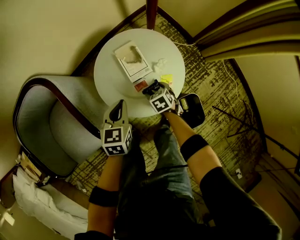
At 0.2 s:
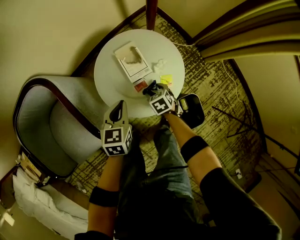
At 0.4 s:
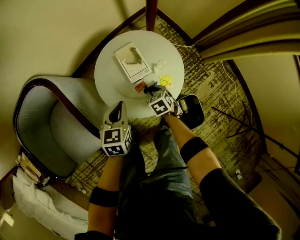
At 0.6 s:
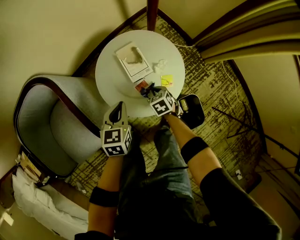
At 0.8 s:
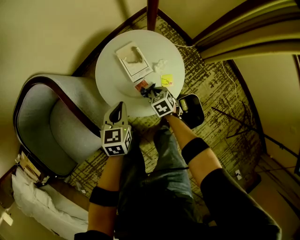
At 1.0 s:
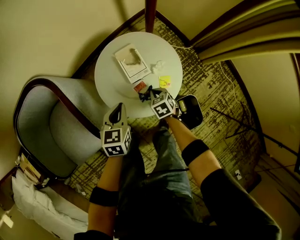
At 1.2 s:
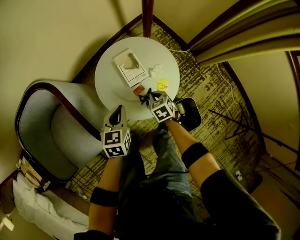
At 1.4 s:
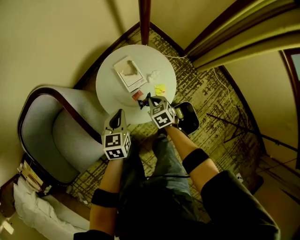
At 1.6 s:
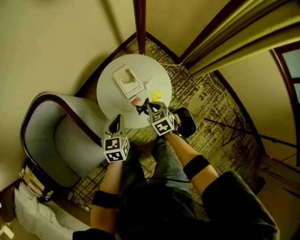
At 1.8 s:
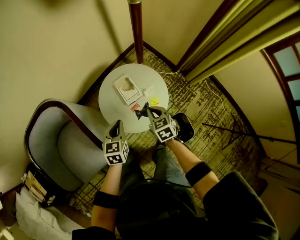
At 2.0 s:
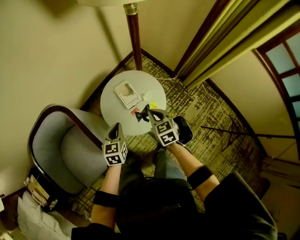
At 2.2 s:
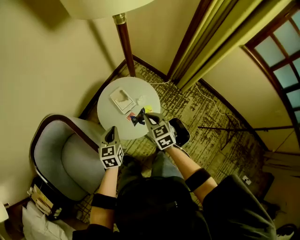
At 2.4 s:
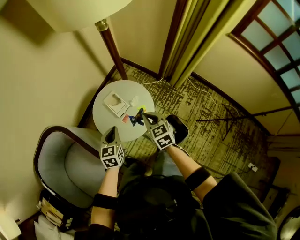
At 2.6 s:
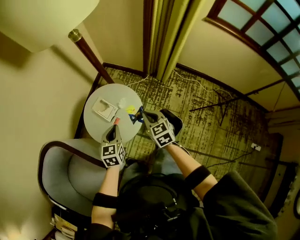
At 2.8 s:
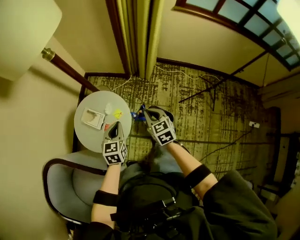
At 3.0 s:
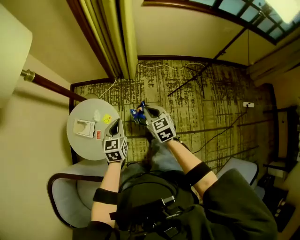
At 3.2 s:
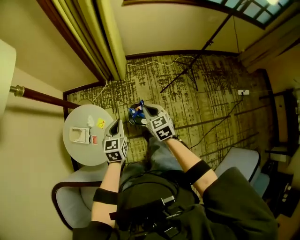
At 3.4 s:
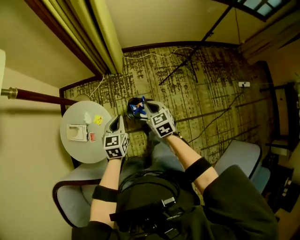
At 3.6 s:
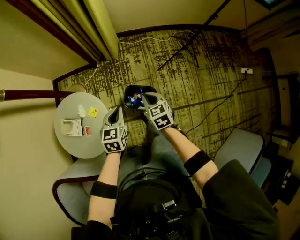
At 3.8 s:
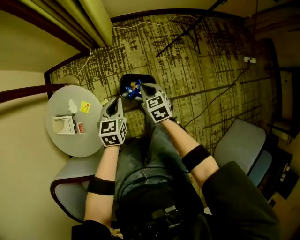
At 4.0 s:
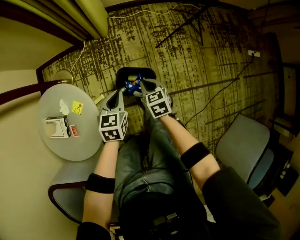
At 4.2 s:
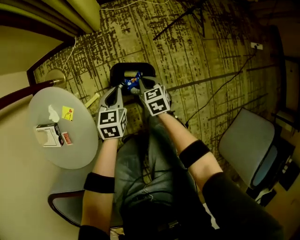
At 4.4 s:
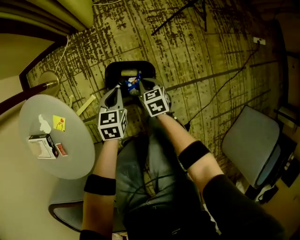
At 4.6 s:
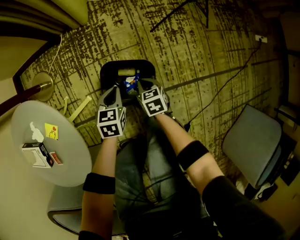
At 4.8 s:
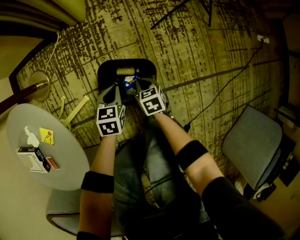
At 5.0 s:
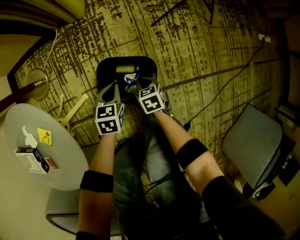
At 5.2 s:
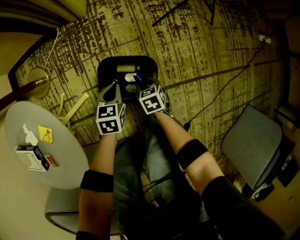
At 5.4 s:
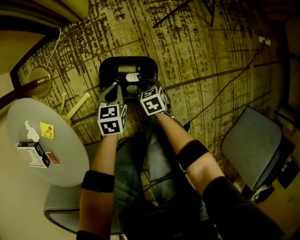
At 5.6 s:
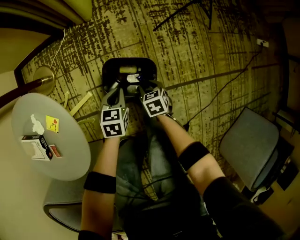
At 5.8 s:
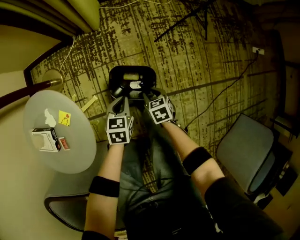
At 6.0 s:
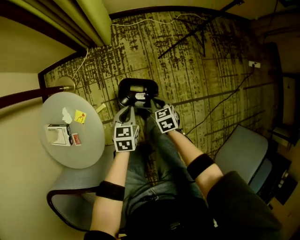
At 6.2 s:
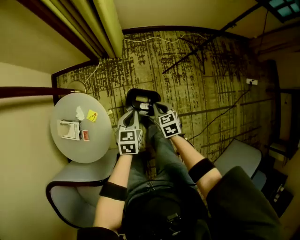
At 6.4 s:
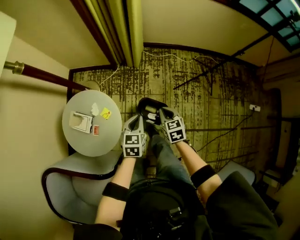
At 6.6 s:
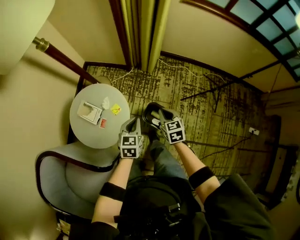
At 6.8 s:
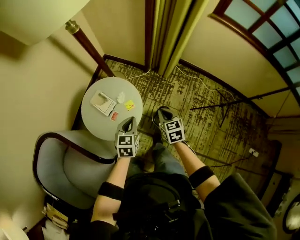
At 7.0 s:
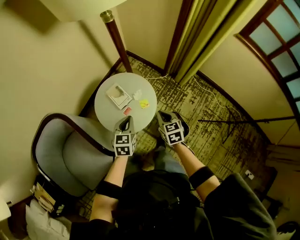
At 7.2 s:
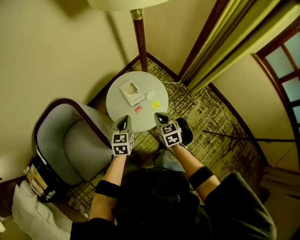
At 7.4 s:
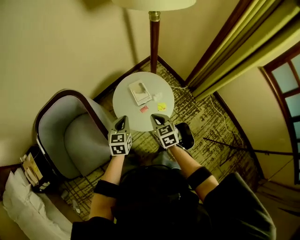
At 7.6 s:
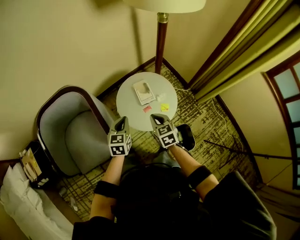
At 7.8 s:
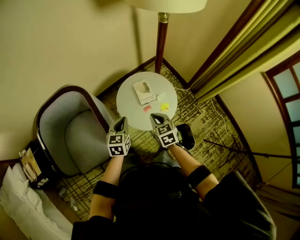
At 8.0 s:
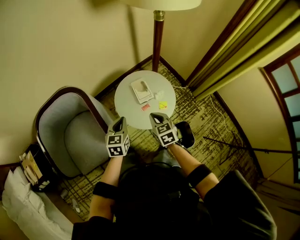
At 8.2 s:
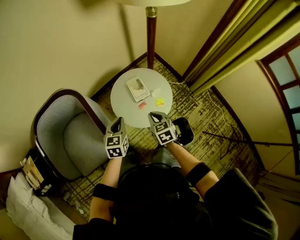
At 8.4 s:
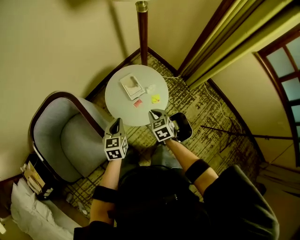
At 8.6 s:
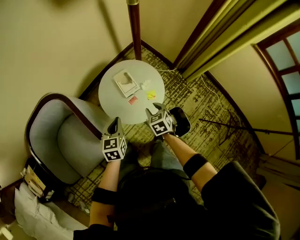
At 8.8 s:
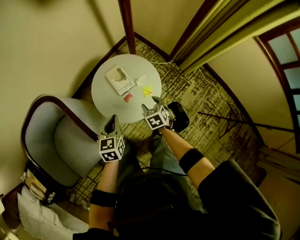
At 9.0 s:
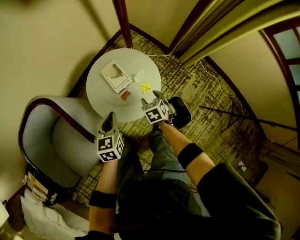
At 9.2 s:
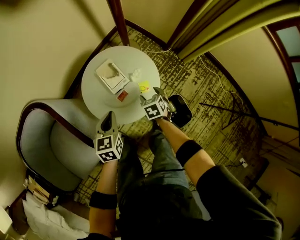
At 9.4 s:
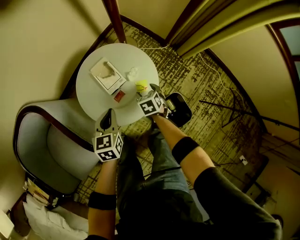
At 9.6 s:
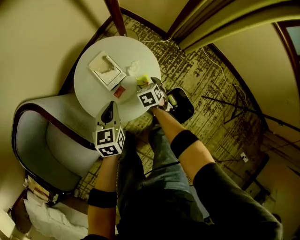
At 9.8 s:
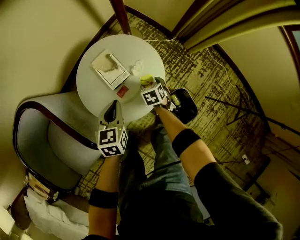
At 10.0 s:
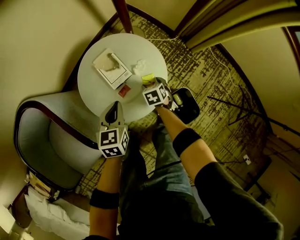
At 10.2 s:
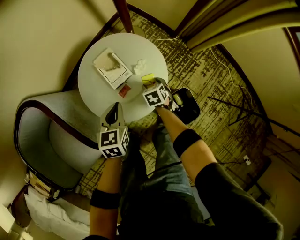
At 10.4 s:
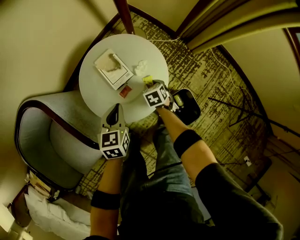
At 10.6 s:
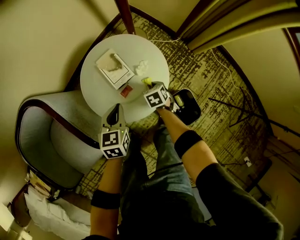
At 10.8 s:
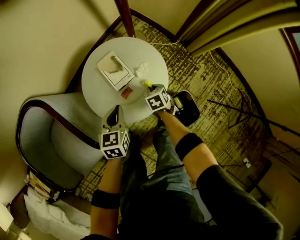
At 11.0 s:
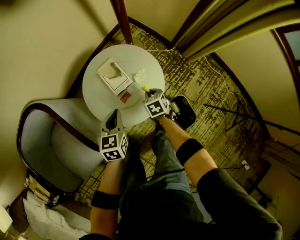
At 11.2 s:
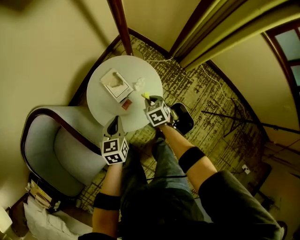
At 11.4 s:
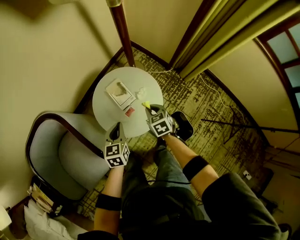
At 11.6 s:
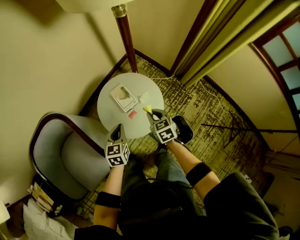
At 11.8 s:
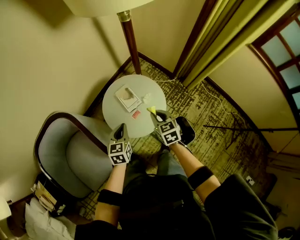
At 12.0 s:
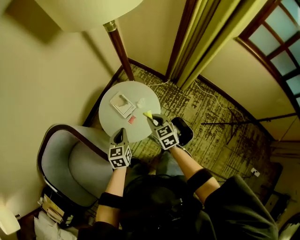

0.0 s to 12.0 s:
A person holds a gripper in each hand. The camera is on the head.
0.0 to 1.6 s: The right gripper shifts approximately 15 cm upward, and closes its fingers; the left gripper moves upward, about 5 cm.
1.6 to 3.0 s: The right gripper shifts by about 35 cm, and changes its angle by about 50 degrees. Meanwhile the left gripper ends up roughly 30 cm from where it was, and rotates roughly 50 degrees.
3.0 to 4.4 s: Both grippers move downward, approximately 50 cm. The left gripper turns by approximately 30 degrees, while the right gripper changes its angle by about 30 degrees.
4.4 to 6.0 s: Both grippers move upward, some 15 cm. The right gripper opens, then closes again.
6.0 to 7.6 s: Both grippers are carried about 40 cm. The right gripper rotates some 70 degrees, while the left gripper turns by roughly 70 degrees.
7.6 to 9.0 s: The left gripper goes roughly 10 cm downward and to the right; the right gripper heads downward and to the right, covering approximately 25 cm, rotates about 30 degrees, and opens.
9.0 to 10.4 s: The left gripper is displaced downward by about 10 cm, while the right gripper shifts roughly 15 cm downward.
10.4 to 12.0 s: The left gripper heads upward, covering about 15 cm, while the right gripper goes about 35 cm upward, and tilts its fingers approximately 30 degrees upward.

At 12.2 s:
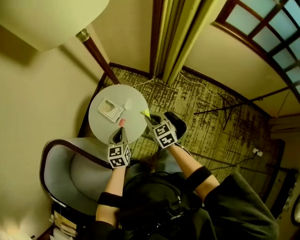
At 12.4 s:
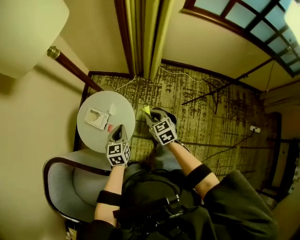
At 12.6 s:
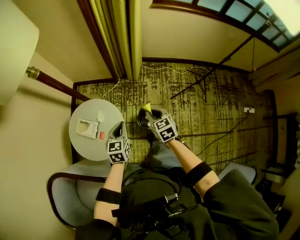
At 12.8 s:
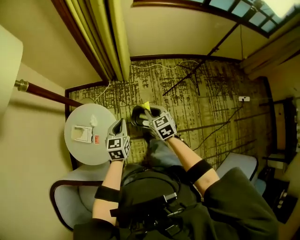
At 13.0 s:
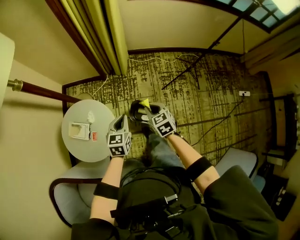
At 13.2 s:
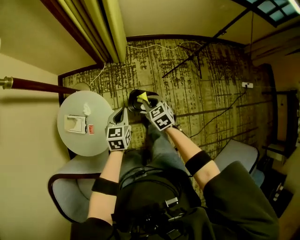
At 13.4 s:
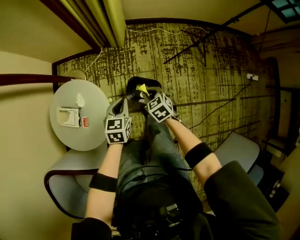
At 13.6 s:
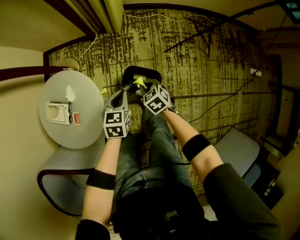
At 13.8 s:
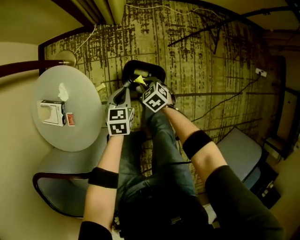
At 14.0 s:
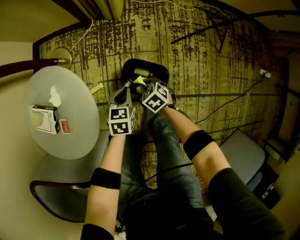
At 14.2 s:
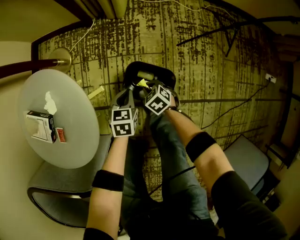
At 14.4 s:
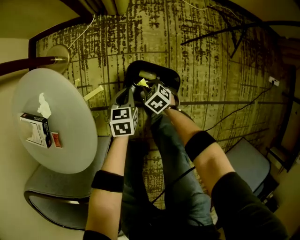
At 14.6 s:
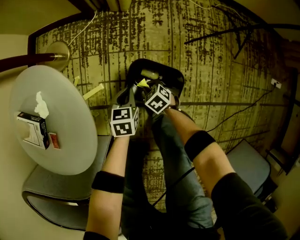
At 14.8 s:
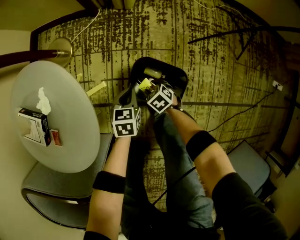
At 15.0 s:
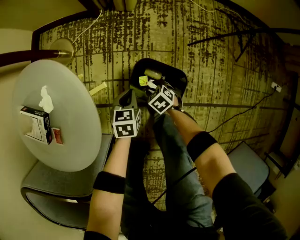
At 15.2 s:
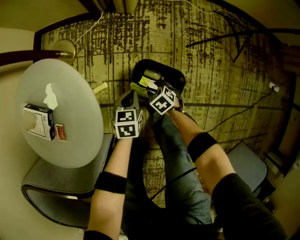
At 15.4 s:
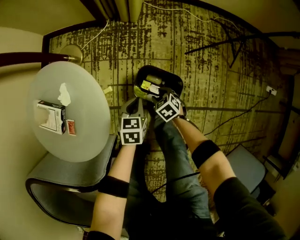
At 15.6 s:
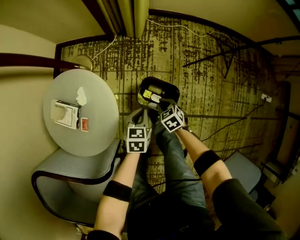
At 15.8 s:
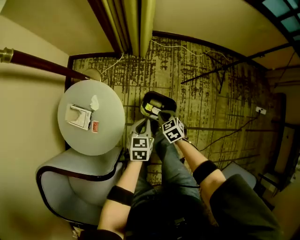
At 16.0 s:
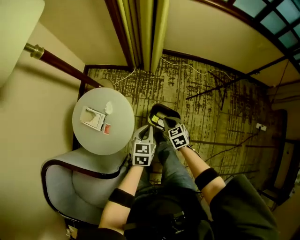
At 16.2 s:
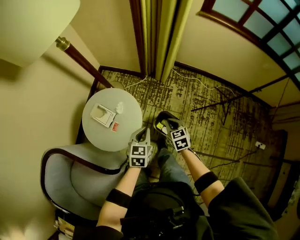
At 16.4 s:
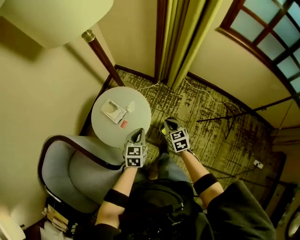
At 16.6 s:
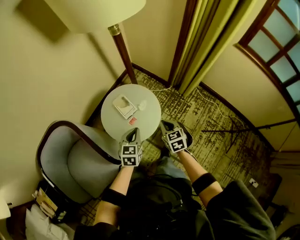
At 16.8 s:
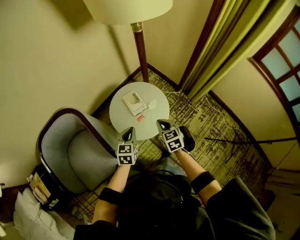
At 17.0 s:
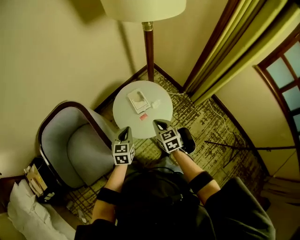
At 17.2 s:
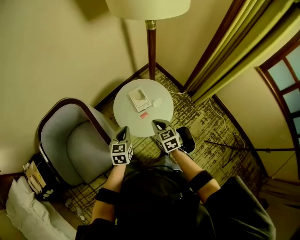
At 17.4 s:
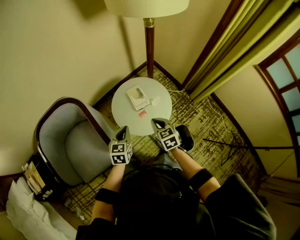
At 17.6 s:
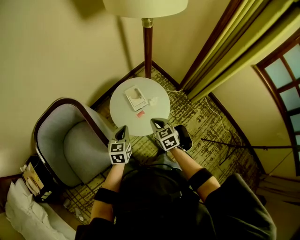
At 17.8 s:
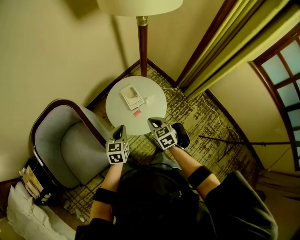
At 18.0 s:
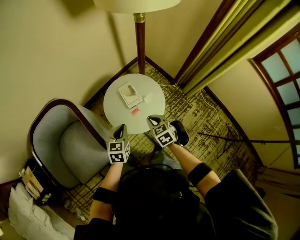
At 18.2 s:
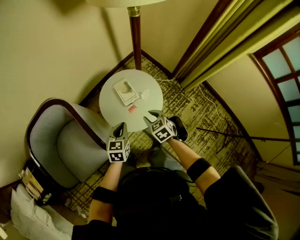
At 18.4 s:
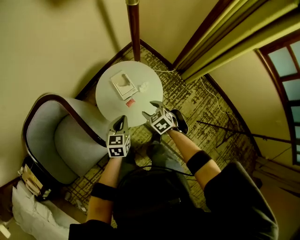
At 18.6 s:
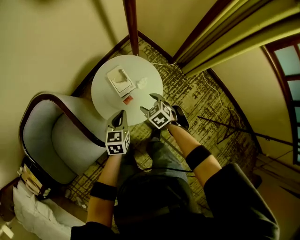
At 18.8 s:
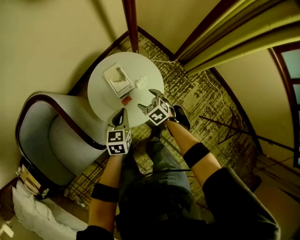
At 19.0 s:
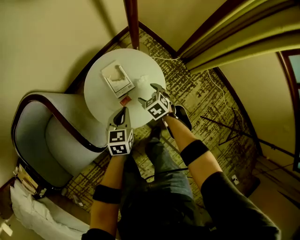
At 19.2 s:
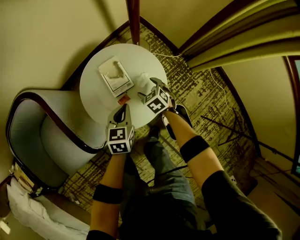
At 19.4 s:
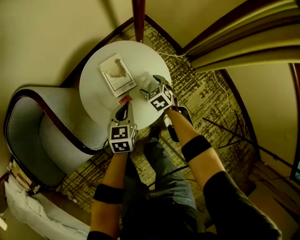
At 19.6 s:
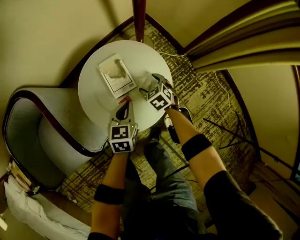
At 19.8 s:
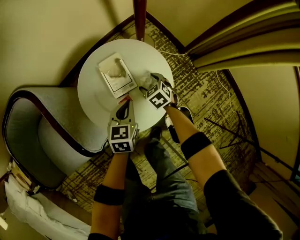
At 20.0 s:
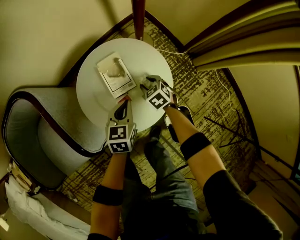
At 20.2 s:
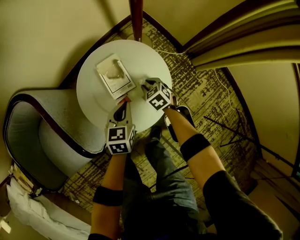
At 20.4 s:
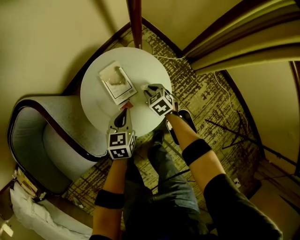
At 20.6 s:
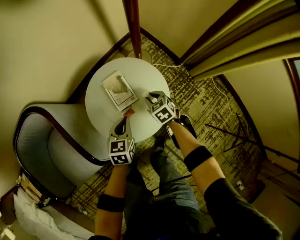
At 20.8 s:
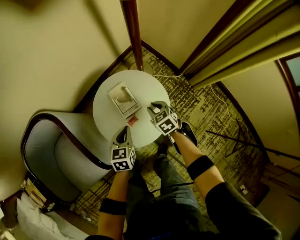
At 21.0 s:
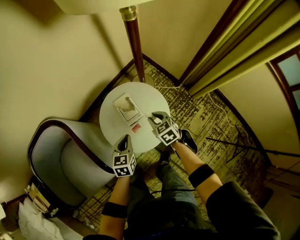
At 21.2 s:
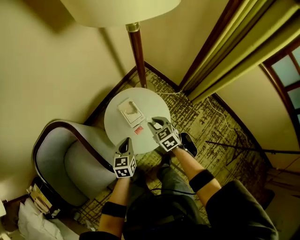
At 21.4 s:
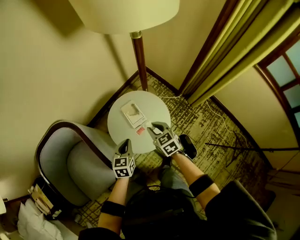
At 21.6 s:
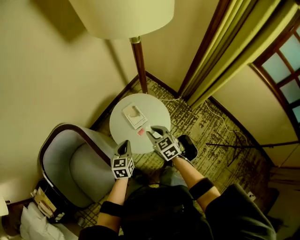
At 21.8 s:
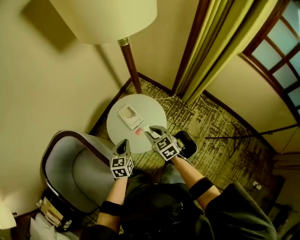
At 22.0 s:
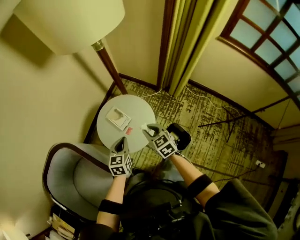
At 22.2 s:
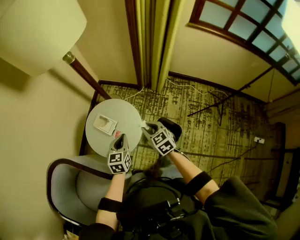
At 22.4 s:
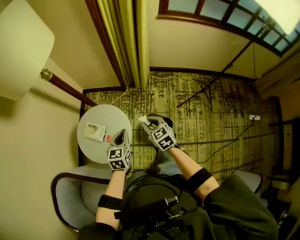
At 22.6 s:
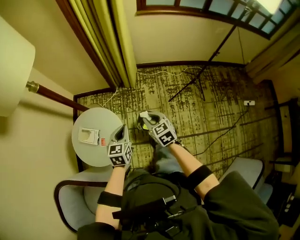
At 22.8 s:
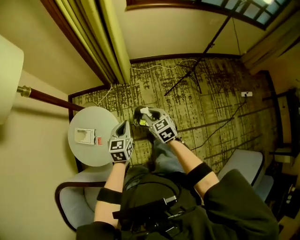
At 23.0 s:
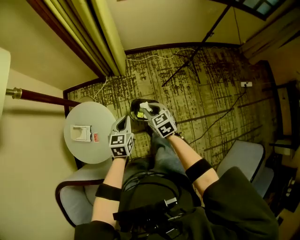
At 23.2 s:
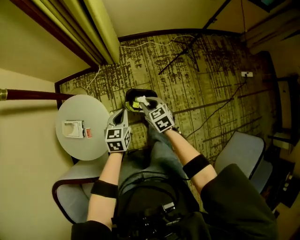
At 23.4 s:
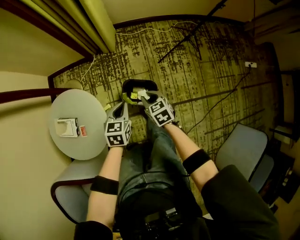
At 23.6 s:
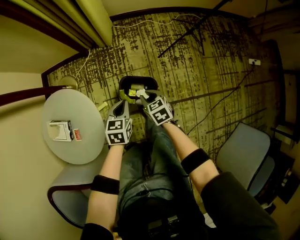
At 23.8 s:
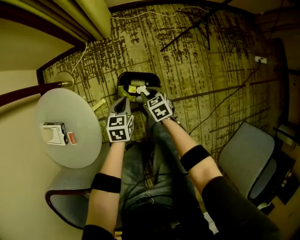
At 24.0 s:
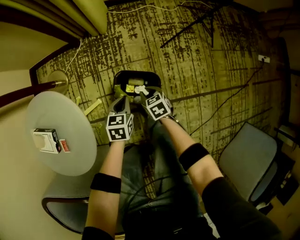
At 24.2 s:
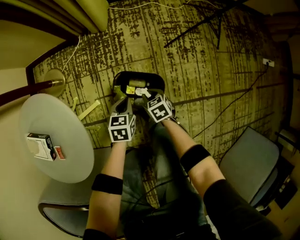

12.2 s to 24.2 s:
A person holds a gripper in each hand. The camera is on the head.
12.2 to 13.8 s: The right gripper shifts roughly 40 cm downward, and rotates some 30 degrees. The left gripper changes place by roughly 40 cm, and turns by some 40 degrees.
13.8 to 15.2 s: Both grippers travel together downward, about 20 cm. The right gripper opens.
15.2 to 16.6 s: The two grippers go approximately 50 cm upward. The right gripper angles its fingers upward, by about 30 degrees, and closes up, while the left gripper swivels approximately 40 degrees.
16.6 to 18.2 s: Both grippers move to the left, approximately 10 cm. The right gripper rotates approximately 20 degrees.
18.2 to 19.8 s: The left gripper is displaced downward, forward and to the right by about 25 cm; the right gripper goes some 35 cm downward and forward, and opens its fingers.
19.8 to 21.2 s: The left gripper shifts approximately 20 cm upward and to the left. The right gripper travels upward by roughly 30 cm, and closes up.
21.2 to 22.6 s: The right gripper shifts by some 35 cm, and swivels some 50 degrees, while the left gripper changes place by roughly 30 cm, and rotates some 50 degrees.
22.6 to 24.2 s: The grippers both shift downward by about 50 cm. The right gripper rotates approximately 30 degrees. The left gripper rotates about 30 degrees.
